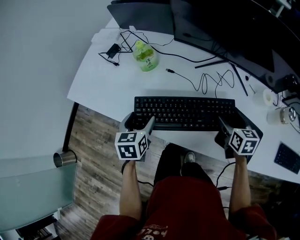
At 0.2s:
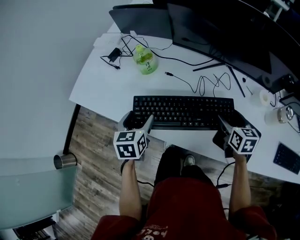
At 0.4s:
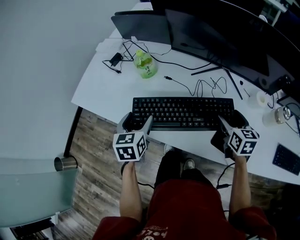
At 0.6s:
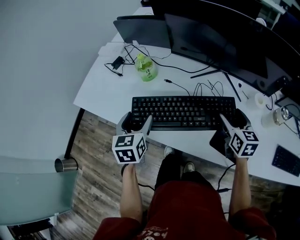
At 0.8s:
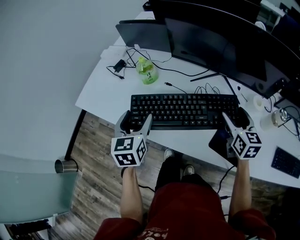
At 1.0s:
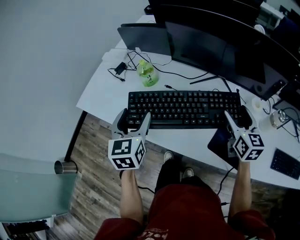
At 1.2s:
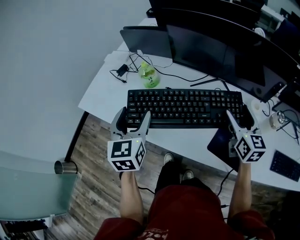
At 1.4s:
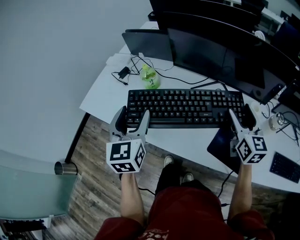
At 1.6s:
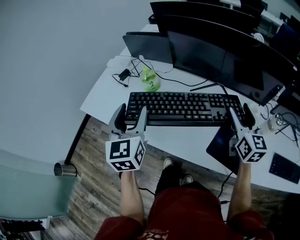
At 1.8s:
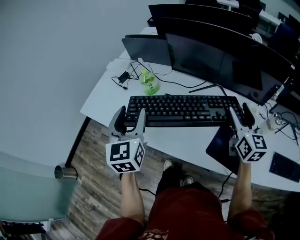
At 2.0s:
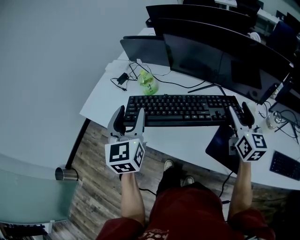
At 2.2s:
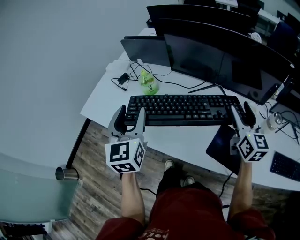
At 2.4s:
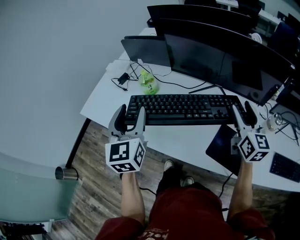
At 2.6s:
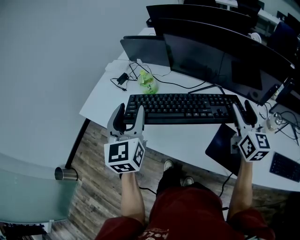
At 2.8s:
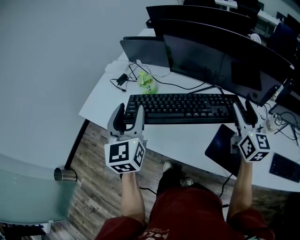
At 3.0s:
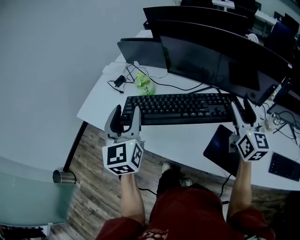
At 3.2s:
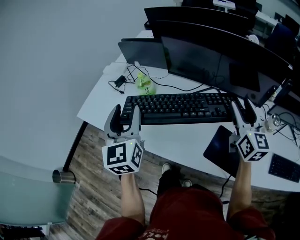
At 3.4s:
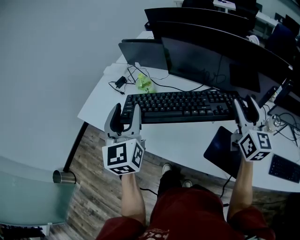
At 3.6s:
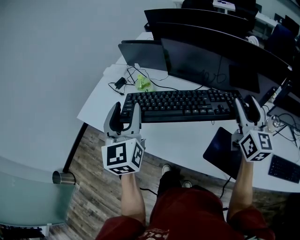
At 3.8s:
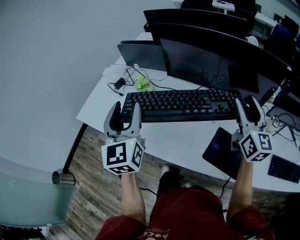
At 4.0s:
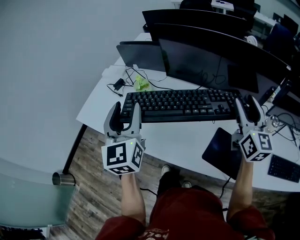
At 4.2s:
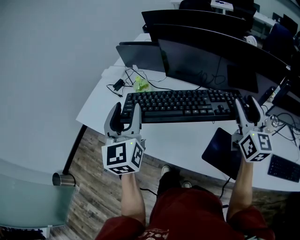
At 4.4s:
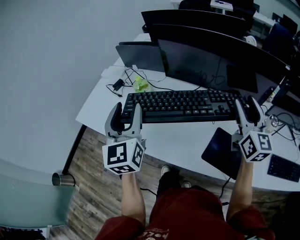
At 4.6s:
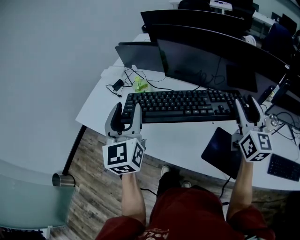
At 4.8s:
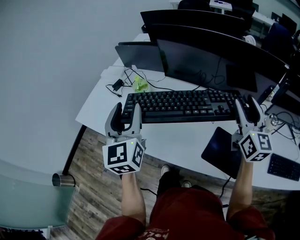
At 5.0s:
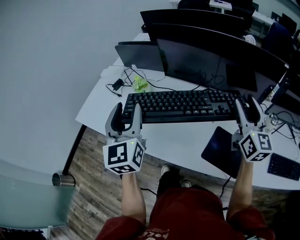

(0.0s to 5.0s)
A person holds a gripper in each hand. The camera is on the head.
0.0s - 1.6s: The grippers both shift upward by about 20 cm. The left gripper tilts its fingers about 30 degrees upward; the right gripper tilts its fingers some 30 degrees upward.
1.6s - 3.4s: The right gripper travels upward by approximately 5 cm.
3.4s - 5.0s: The grippers make only small movements.

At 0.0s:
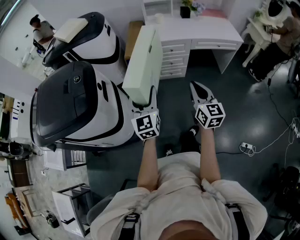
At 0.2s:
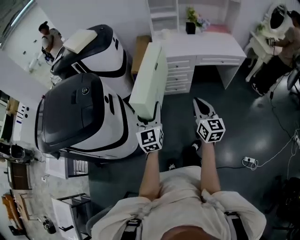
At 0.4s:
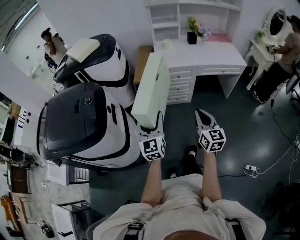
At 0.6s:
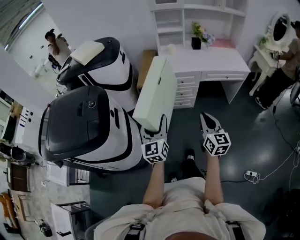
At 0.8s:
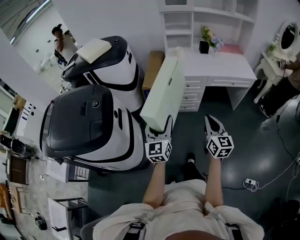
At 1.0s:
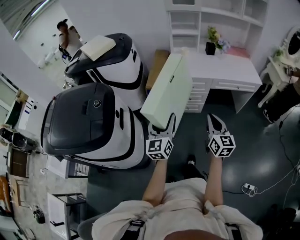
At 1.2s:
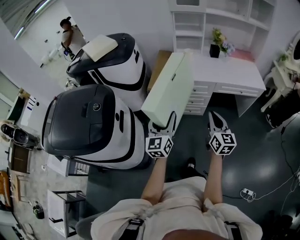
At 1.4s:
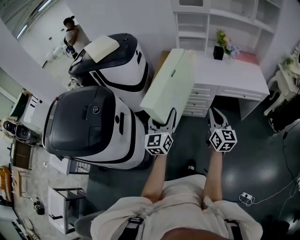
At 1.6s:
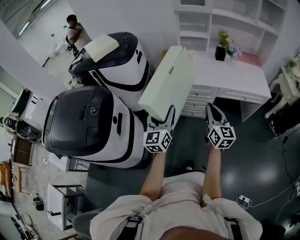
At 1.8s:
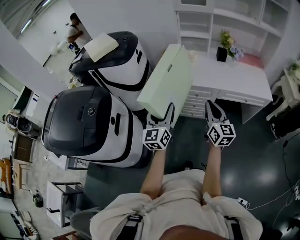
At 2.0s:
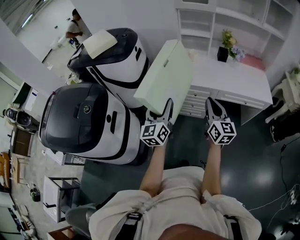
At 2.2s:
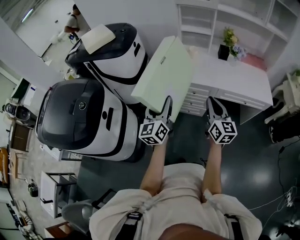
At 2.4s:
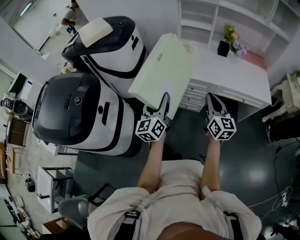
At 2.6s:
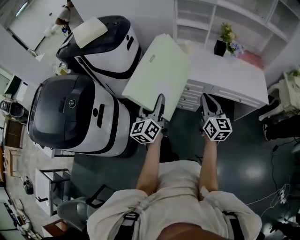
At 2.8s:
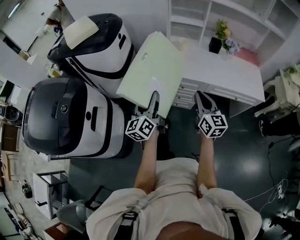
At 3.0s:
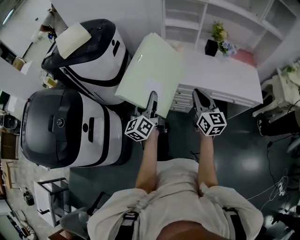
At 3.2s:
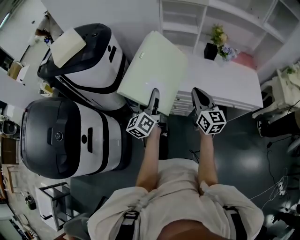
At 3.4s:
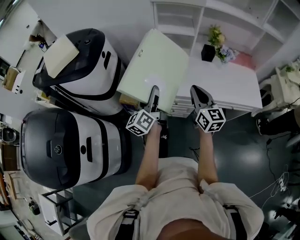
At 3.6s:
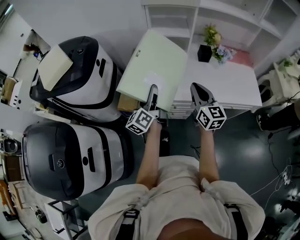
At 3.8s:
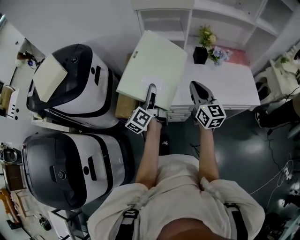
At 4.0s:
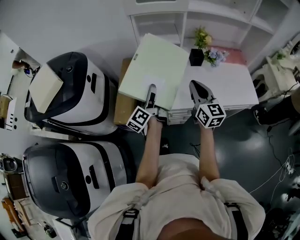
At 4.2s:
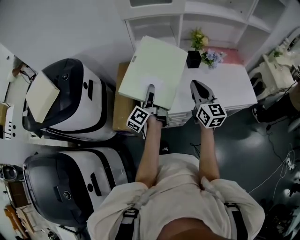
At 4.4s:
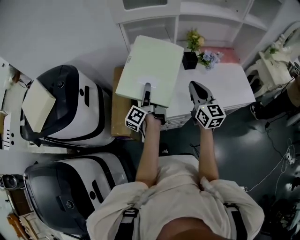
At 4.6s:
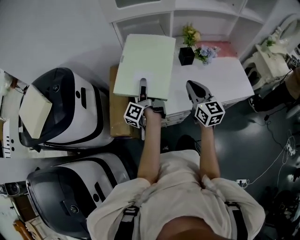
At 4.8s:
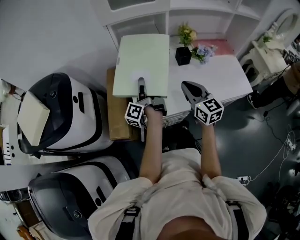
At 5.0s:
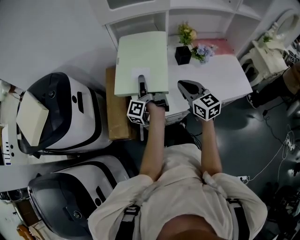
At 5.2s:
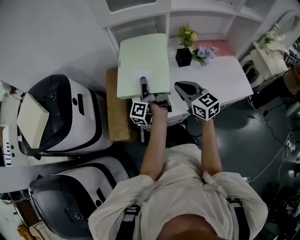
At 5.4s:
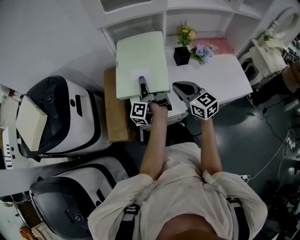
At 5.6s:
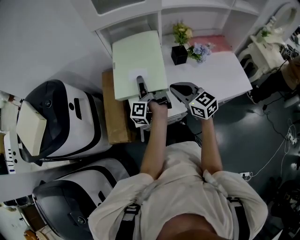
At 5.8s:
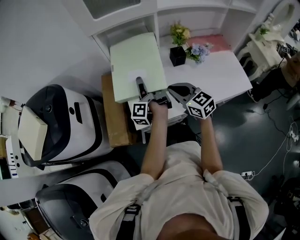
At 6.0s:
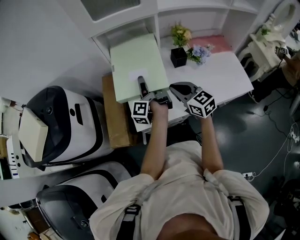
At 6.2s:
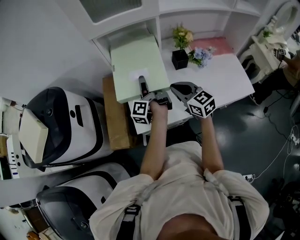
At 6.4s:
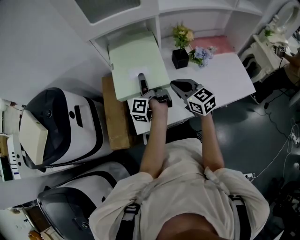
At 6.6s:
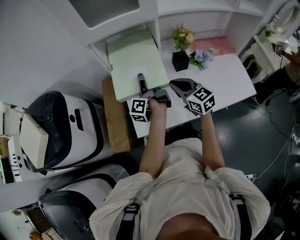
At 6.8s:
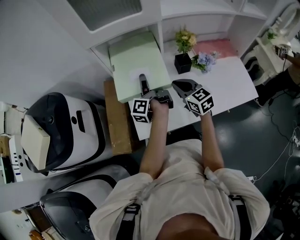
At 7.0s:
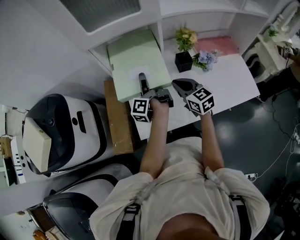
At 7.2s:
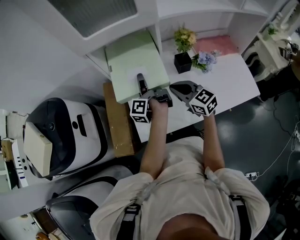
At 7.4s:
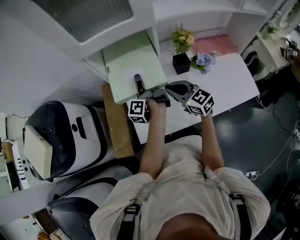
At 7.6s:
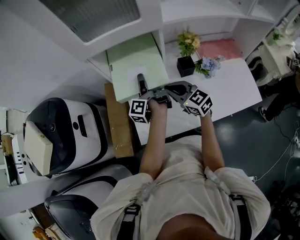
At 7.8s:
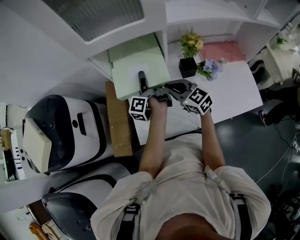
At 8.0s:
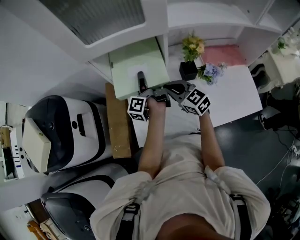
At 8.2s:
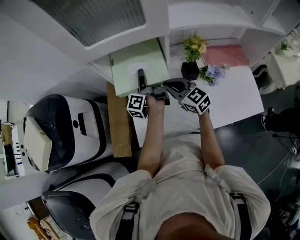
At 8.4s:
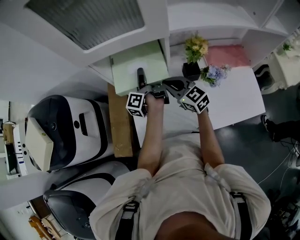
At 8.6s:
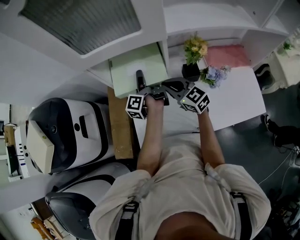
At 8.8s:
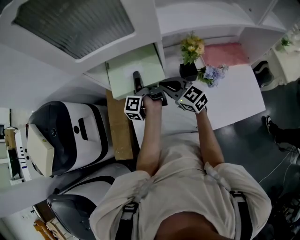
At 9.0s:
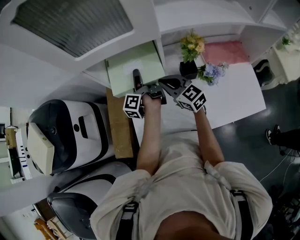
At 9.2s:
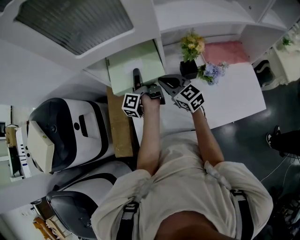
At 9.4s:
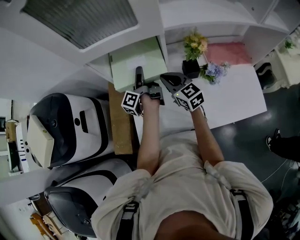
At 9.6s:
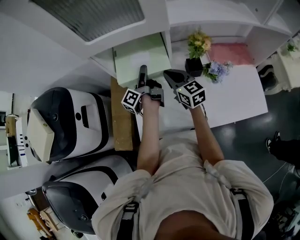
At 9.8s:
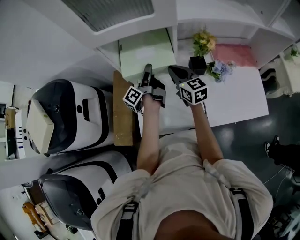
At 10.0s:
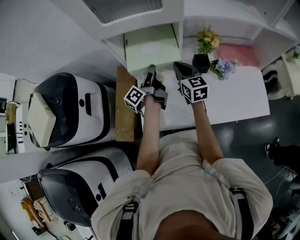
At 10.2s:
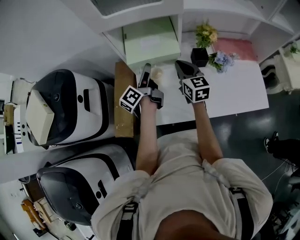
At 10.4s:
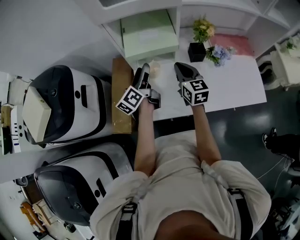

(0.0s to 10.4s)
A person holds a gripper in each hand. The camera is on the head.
0.0s - 1.4s: Both grippers move forward, some 15 cm.
1.4s - 3.0s: Both grippers travel together forward, some 20 cm. The left gripper rotates some 30 degrees.
3.0s - 4.4s: Both grippers travel together forward, approximately 30 cm. The left gripper changes its angle by some 40 degrees.
4.4s - 6.0s: The right gripper travels downward and forward by roughly 10 cm, and swivels approximately 30 degrees; the left gripper is displaced forward and to the right by about 10 cm.
6.0s - 7.4s: The two grippers go approximately 10 cm forward.
7.4s - 9.0s: The two grippers go roughly 10 cm forward.
9.0s - 10.4s: The left gripper goes approximately 15 cm backward and to the left, and swivels some 40 degrees, while the right gripper goes some 5 cm backward, and swivels about 30 degrees.

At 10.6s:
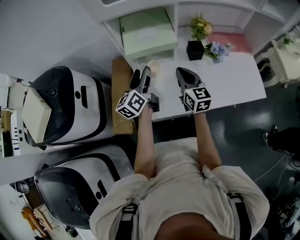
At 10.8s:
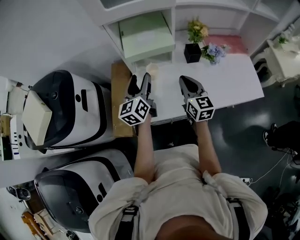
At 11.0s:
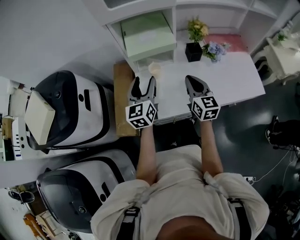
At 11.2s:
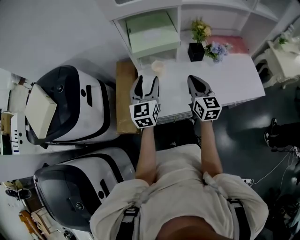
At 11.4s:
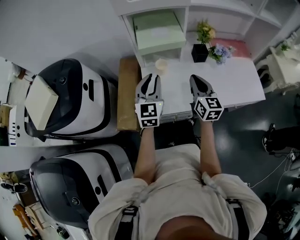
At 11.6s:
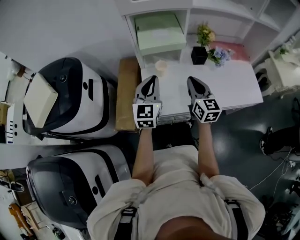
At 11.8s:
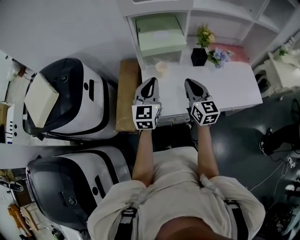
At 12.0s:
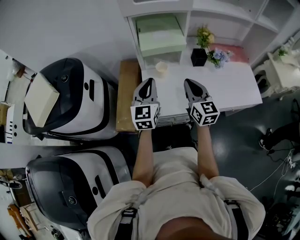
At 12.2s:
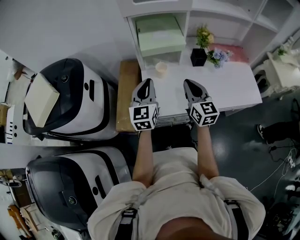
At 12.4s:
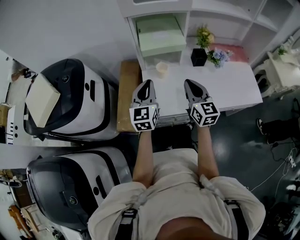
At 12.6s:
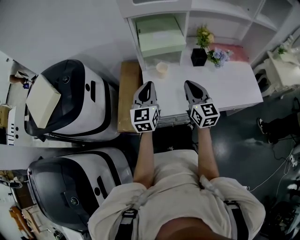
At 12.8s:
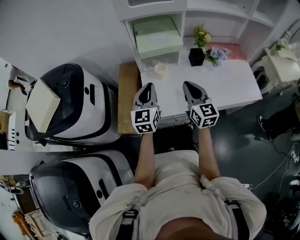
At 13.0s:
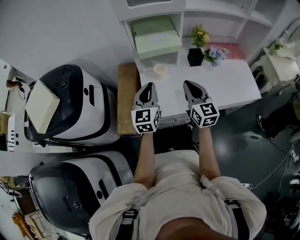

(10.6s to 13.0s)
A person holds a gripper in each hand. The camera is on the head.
10.6s - 11.8s: The two grippers go roughly 10 cm backward. The left gripper rolls clockwise, seen from behind, by approximately 40 degrees, and closes.
11.8s - 13.0s: There are only small adjustments of the grippers.

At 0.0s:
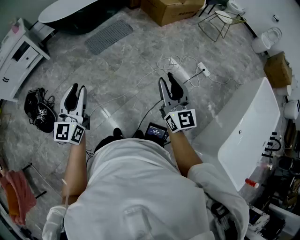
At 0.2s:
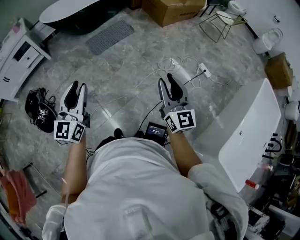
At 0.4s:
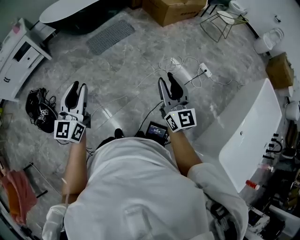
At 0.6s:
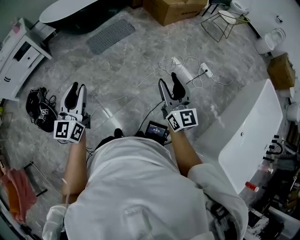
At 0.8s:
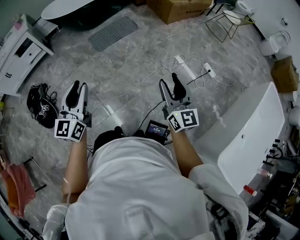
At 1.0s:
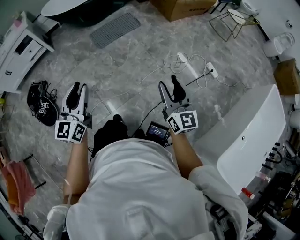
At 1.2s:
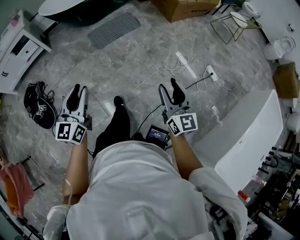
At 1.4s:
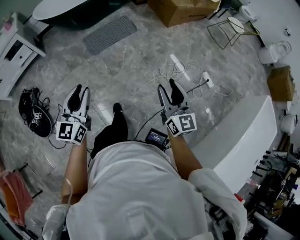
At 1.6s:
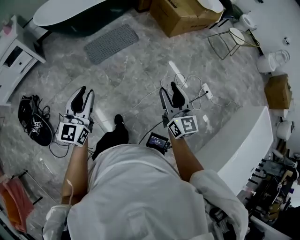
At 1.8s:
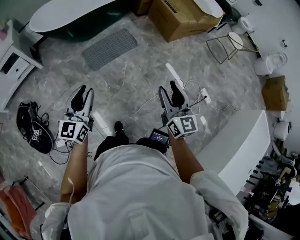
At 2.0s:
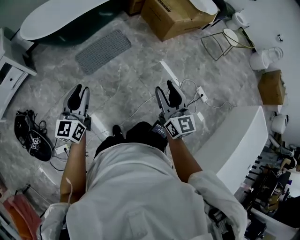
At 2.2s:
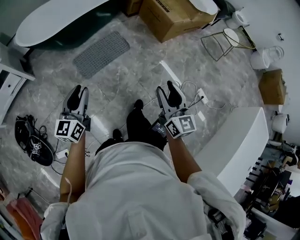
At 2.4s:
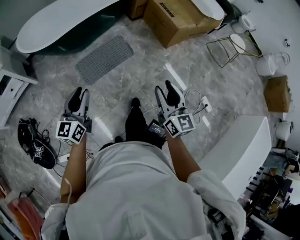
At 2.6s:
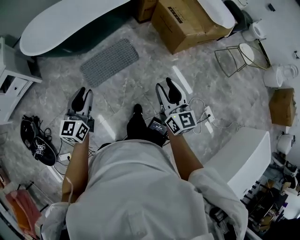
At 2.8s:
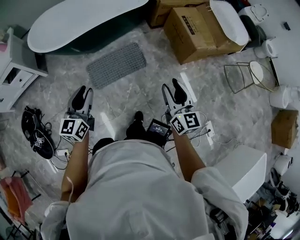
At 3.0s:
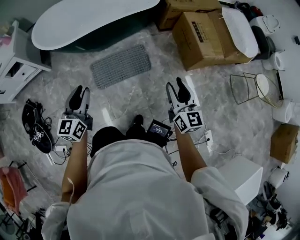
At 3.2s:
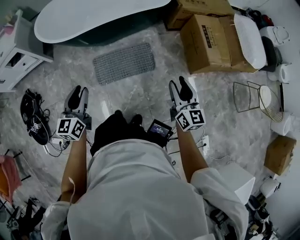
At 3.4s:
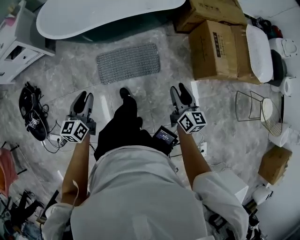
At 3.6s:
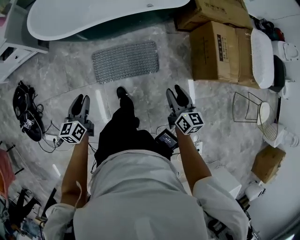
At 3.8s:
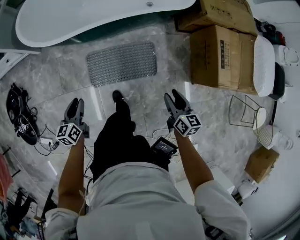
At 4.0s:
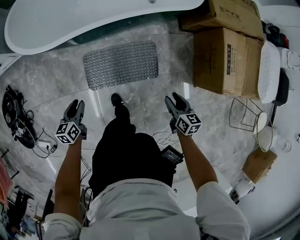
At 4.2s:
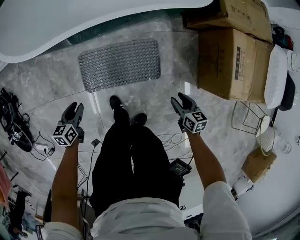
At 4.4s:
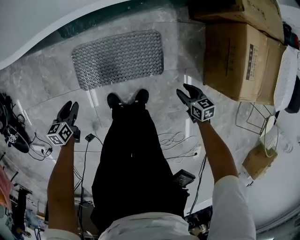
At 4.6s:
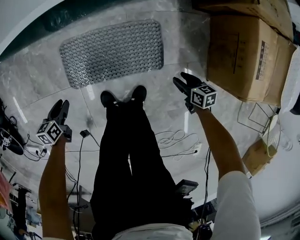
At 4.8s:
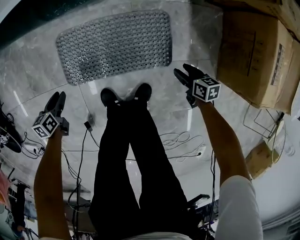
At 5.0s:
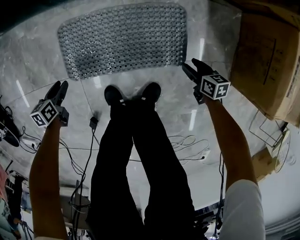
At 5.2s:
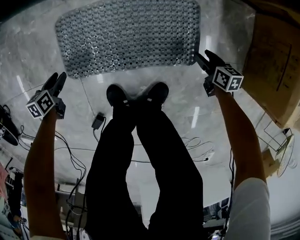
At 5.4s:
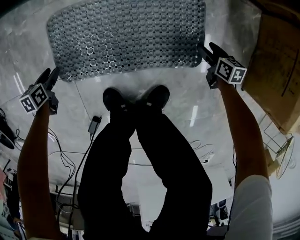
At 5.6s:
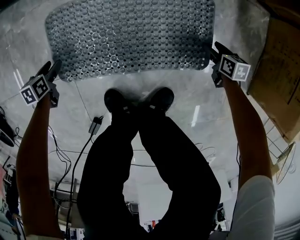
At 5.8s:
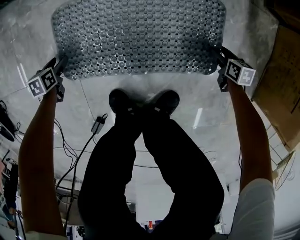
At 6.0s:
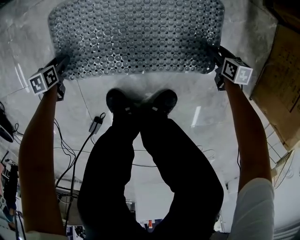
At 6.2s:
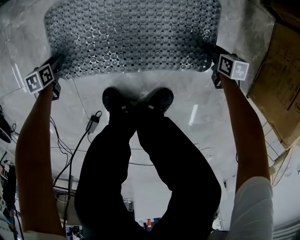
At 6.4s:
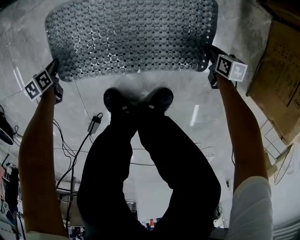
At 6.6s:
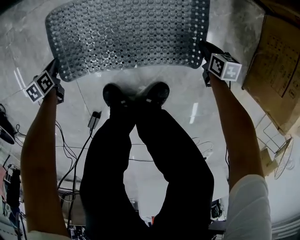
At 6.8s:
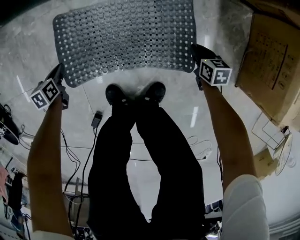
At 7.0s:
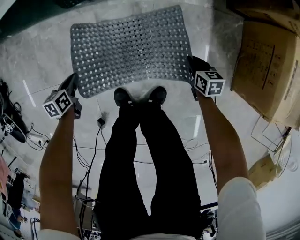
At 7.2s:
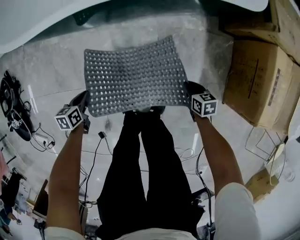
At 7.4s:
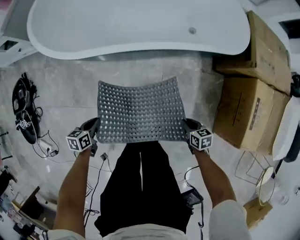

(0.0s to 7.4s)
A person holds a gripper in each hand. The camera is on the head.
0.0s - 1.4s: Both grippers travel together forward, roughly 20 cm.
1.4s - 3.0s: The two grippers travel together, forward, roughly 60 cm.
3.0s - 4.4s: Both grippers travel together downward and forward, roughly 60 cm. The left gripper tilts its fingers approximately 40 degrees downward, while the right gripper points its fingers approximately 50 degrees further downward.
4.4s - 6.0s: Both grippers travel together downward, approximately 40 cm. The left gripper changes its angle by some 20 degrees, and opens its fingers.
6.0s - 7.4s: Both grippers move upward, some 50 cm. The right gripper closes up, while the left gripper swivels roughly 30 degrees, and closes up.
